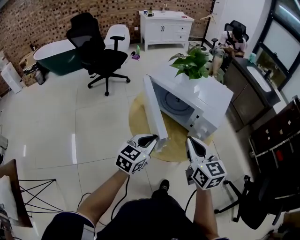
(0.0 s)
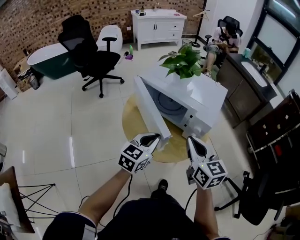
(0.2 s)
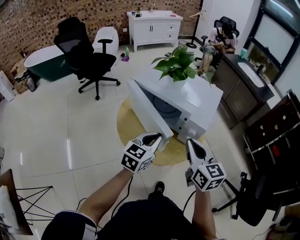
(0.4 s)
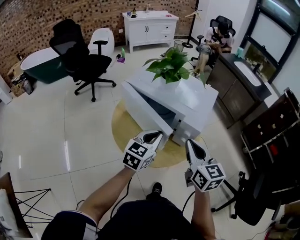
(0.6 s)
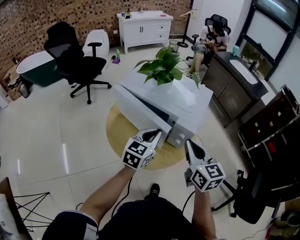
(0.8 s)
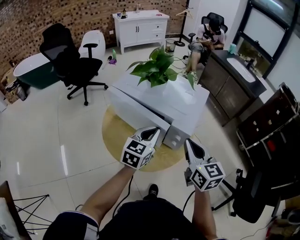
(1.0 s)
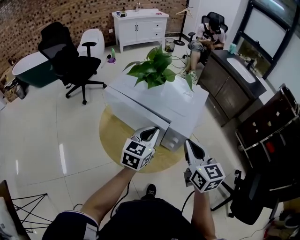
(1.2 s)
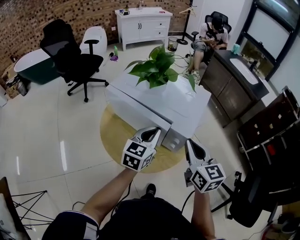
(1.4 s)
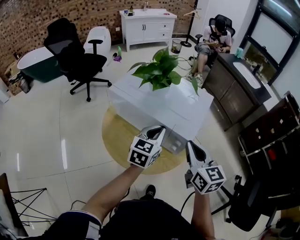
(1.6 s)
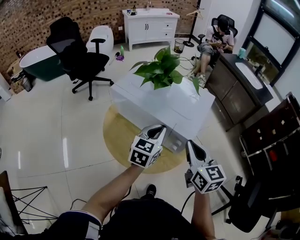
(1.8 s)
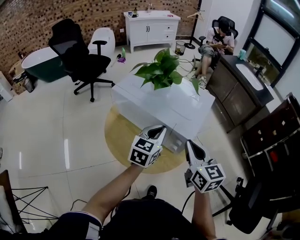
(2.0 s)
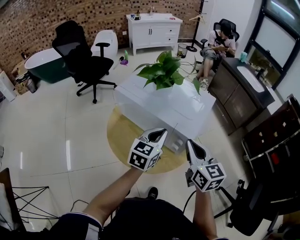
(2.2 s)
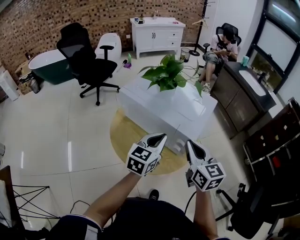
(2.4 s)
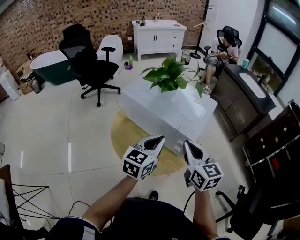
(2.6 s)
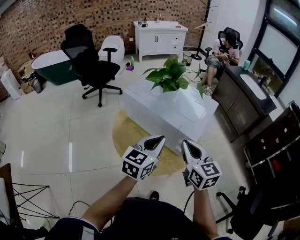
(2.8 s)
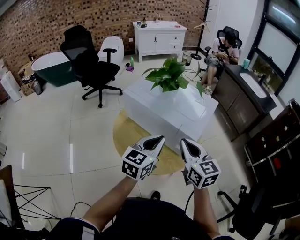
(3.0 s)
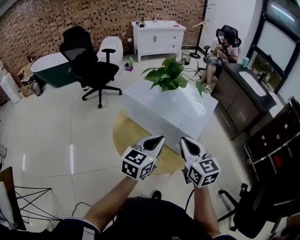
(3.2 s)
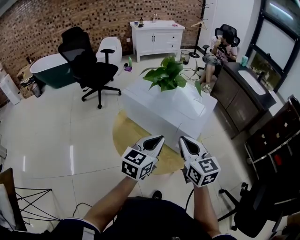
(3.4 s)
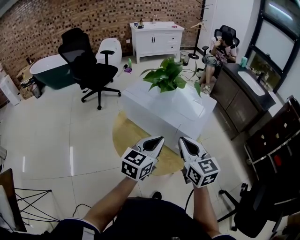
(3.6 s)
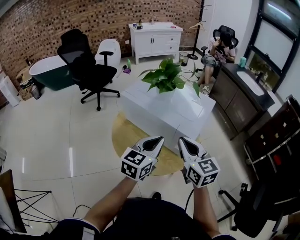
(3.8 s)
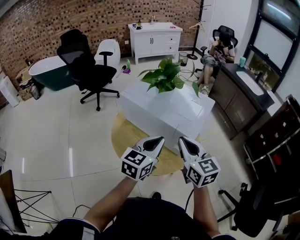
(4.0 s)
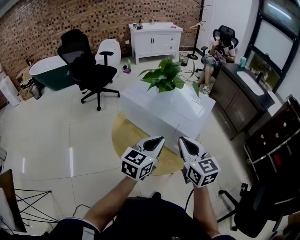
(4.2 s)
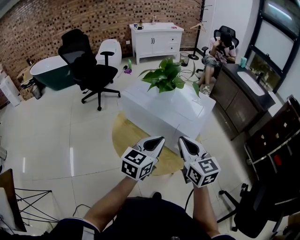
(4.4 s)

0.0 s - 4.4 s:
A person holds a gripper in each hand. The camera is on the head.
0.0 s - 1.4 s: The left gripper goes some 20 cm forward and to the right; the right gripper shifts about 15 cm to the right and forward.
1.4 s - 3.0 s: The right gripper travels to the left by roughly 5 cm; the left gripper shifts about 5 cm backward.
3.0 s - 4.4 s: Neither gripper changes place.

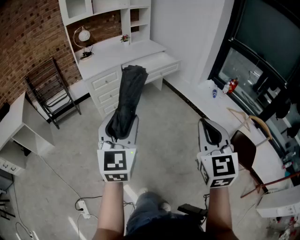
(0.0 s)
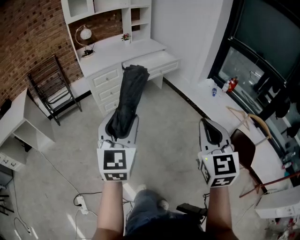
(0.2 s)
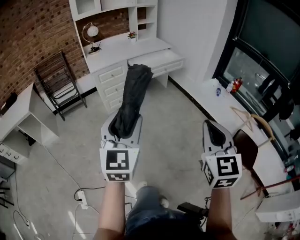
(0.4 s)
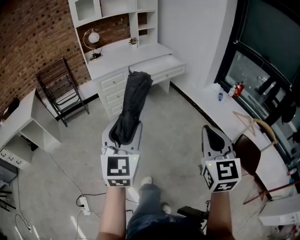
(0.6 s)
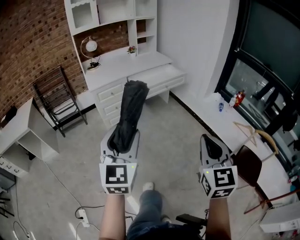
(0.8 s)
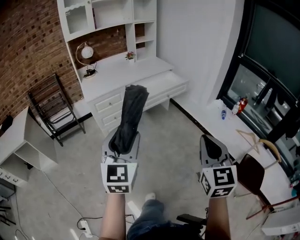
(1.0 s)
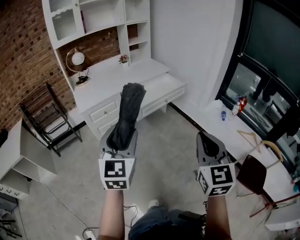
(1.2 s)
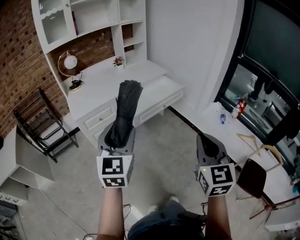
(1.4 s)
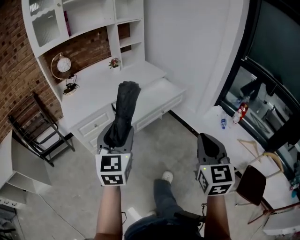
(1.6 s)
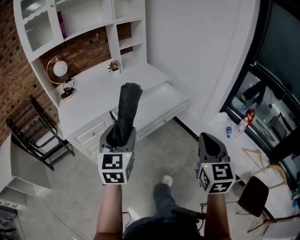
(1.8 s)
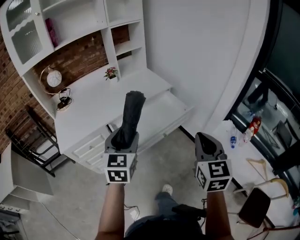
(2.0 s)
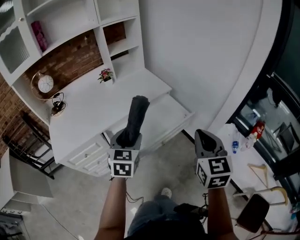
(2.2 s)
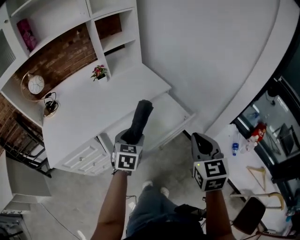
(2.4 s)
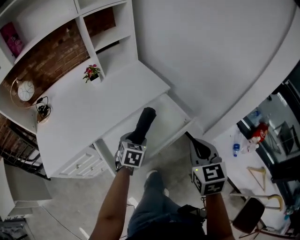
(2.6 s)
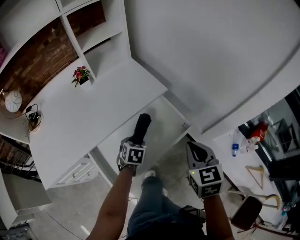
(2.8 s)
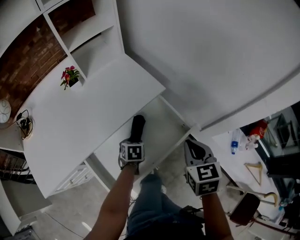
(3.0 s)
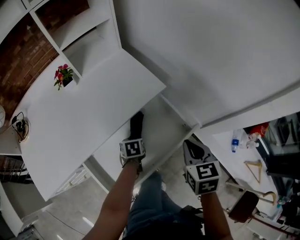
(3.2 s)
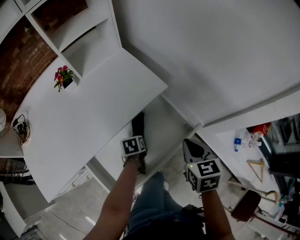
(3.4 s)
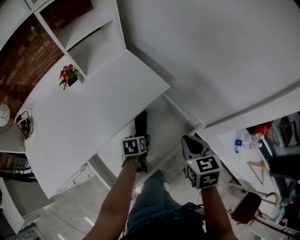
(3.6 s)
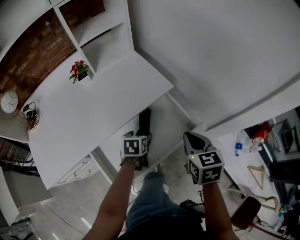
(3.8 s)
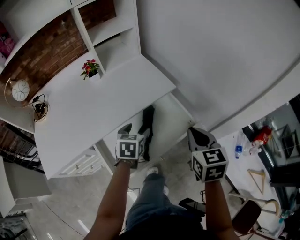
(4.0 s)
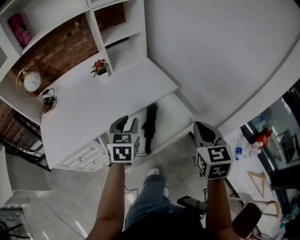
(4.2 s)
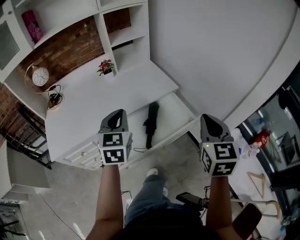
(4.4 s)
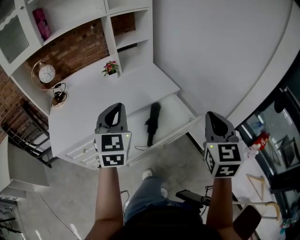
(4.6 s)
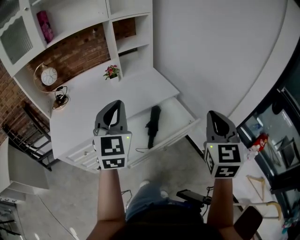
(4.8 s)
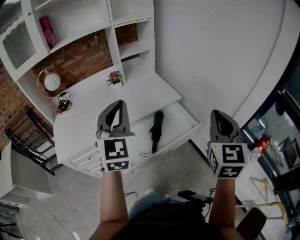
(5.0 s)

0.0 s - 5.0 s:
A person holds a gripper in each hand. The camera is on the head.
0.0 s - 1.6 s: The two grippers travel together, forward, about 40 cm.
1.6 s - 3.4 s: Both grippers are carried forward, roughly 60 cm. The left gripper shifts roughly 40 cm downward, and angles its fingers downward, by about 60 degrees. Meanwhile the right gripper tilts its fingers approximately 30 degrees downward.
3.4 s - 5.0 s: The left gripper shifts approximately 50 cm upward and backward, tilts its fingers some 70 degrees upward, and closes up, while the right gripper heads upward and backward, covering some 35 cm, and tilts its fingers roughly 40 degrees upward.

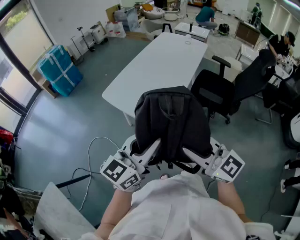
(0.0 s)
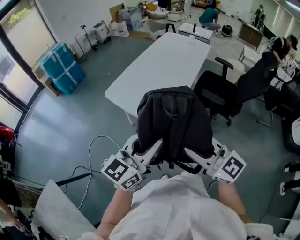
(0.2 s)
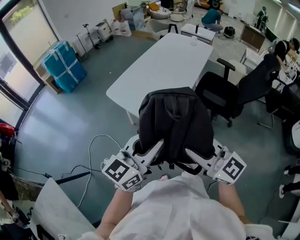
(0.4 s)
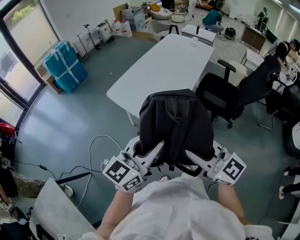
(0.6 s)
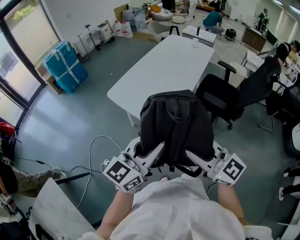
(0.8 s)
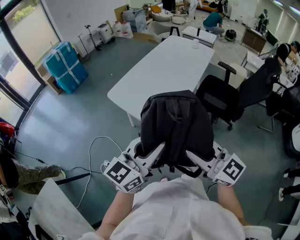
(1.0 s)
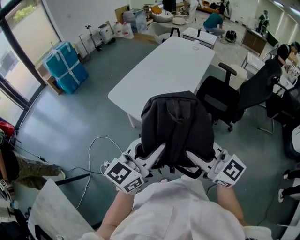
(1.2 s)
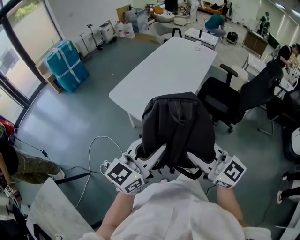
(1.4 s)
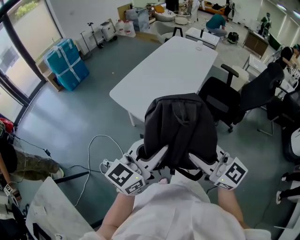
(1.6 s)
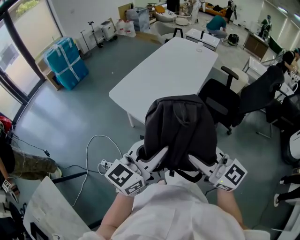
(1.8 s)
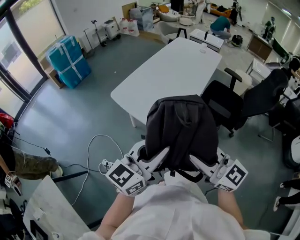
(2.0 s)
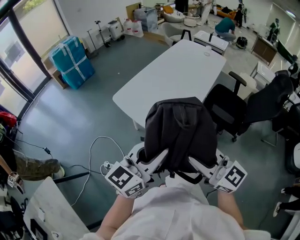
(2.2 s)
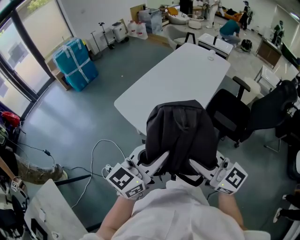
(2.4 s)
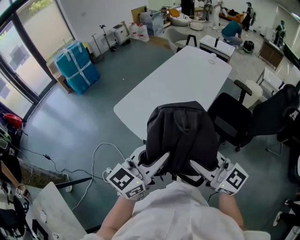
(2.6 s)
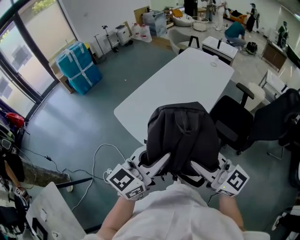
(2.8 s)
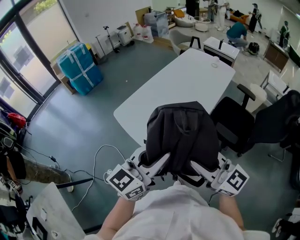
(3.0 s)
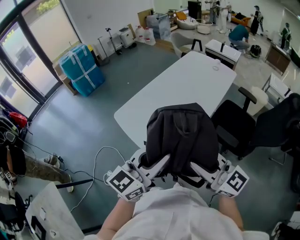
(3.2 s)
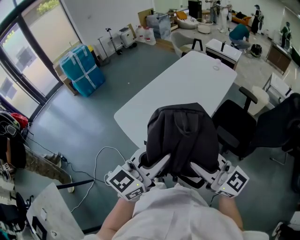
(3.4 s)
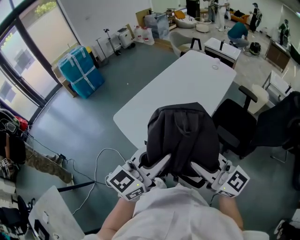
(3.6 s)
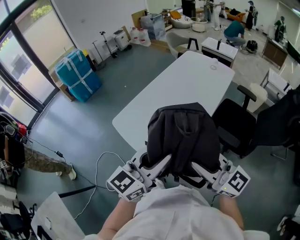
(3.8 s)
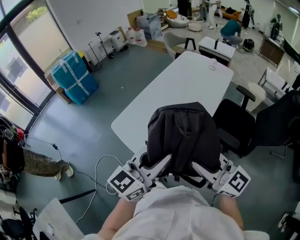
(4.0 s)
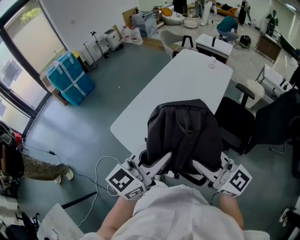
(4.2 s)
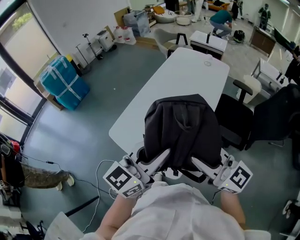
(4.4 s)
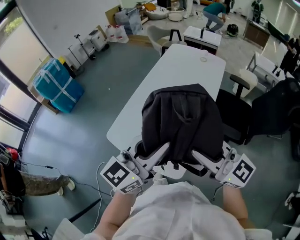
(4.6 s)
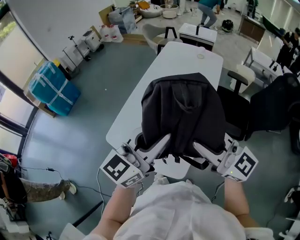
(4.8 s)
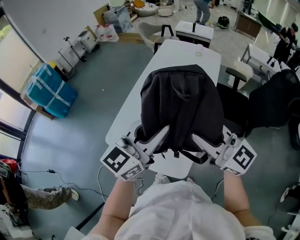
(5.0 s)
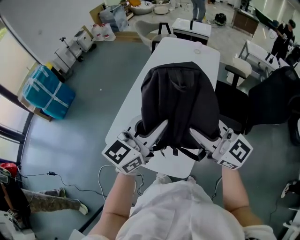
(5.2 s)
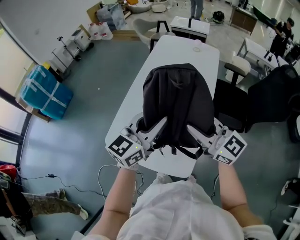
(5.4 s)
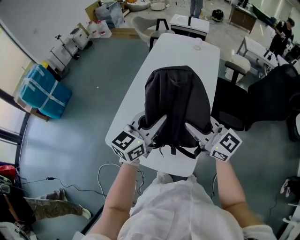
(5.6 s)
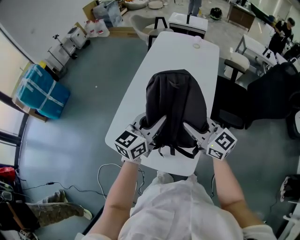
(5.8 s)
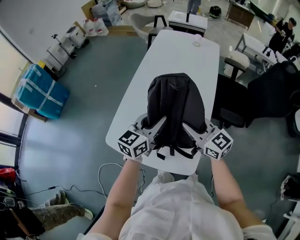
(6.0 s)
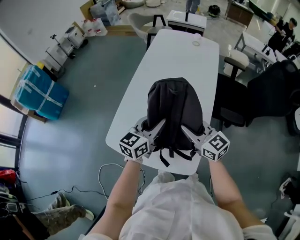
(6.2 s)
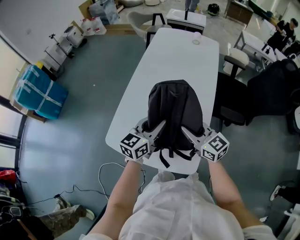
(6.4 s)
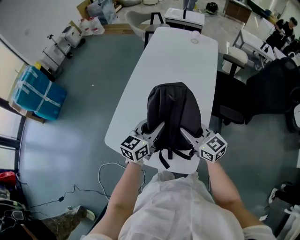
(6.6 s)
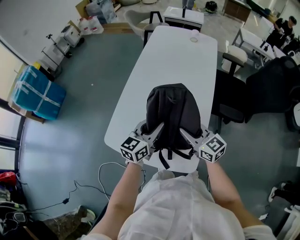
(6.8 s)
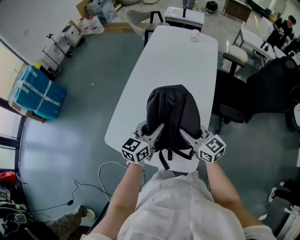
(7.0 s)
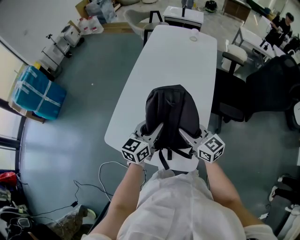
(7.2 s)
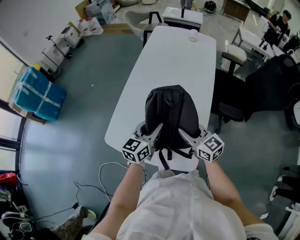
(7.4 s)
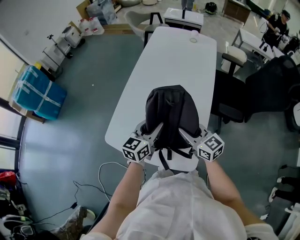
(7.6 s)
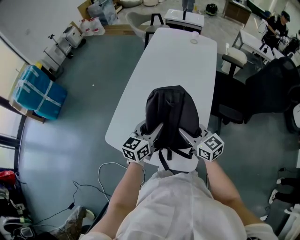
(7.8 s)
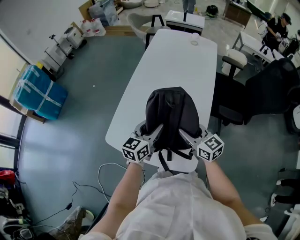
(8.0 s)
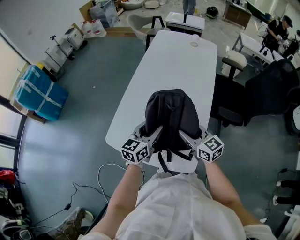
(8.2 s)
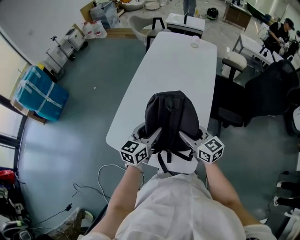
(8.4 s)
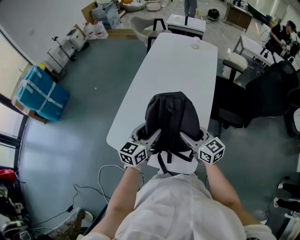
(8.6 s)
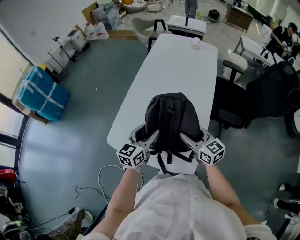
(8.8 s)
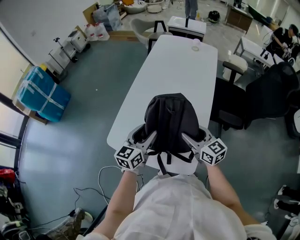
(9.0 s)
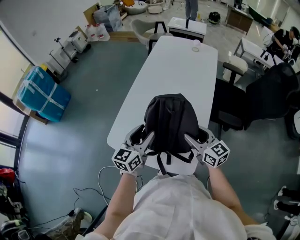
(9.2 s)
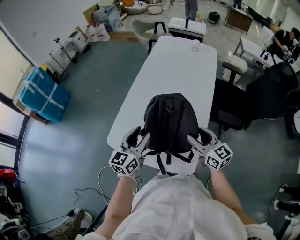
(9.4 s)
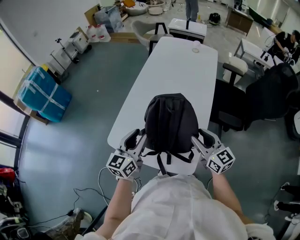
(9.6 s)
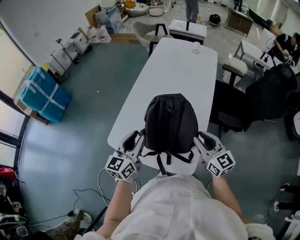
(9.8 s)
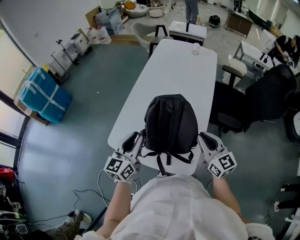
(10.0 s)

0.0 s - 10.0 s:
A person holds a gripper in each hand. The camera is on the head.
0.0 s - 1.4 s: Neither gripper changes place.
1.4 s - 2.8 s: The two grippers go approximately 15 cm forward and to the right.
2.8 s - 4.2 s: The grippers both shift forward by about 10 cm.
4.2 s - 5.8 s: The right gripper shifts about 25 cm forward, downward and to the left, and changes its angle by approximately 20 degrees. Meanwhile the left gripper goes roughly 25 cm forward and downward.
5.8 s - 7.2 s: Both grippers move downward, some 10 cm.
7.2 s - 8.6 s: The right gripper opens its fingers. Meanwhile the left gripper opens up.
8.6 s - 10.0 s: The right gripper goes some 10 cm upward and to the right, and closes its fingers. Meanwhile the left gripper is displaced to the left and upward by about 10 cm, and closes.

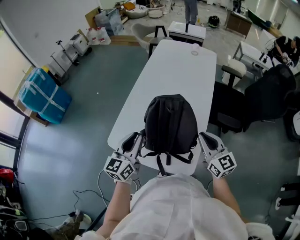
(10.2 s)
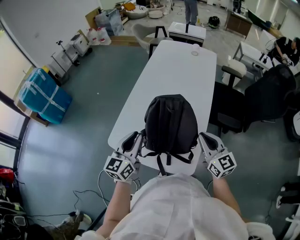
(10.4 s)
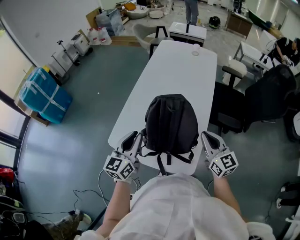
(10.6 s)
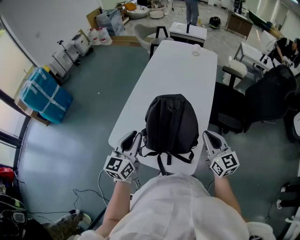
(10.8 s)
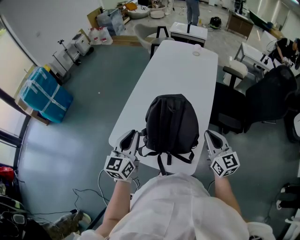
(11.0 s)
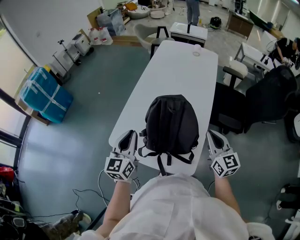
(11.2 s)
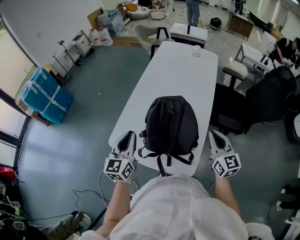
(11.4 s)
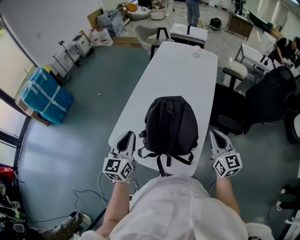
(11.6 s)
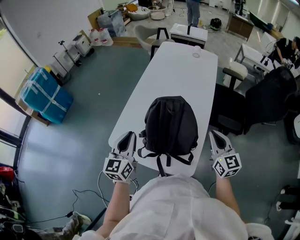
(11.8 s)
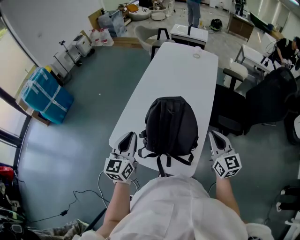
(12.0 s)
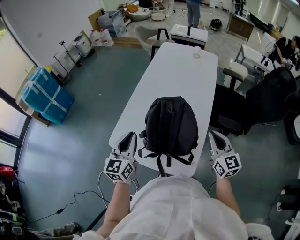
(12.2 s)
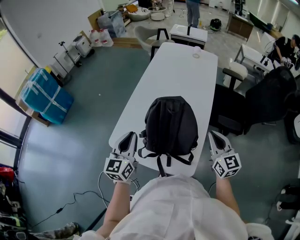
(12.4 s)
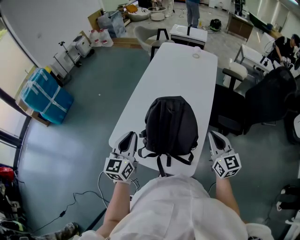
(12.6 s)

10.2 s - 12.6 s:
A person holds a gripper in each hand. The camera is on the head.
10.2 s - 11.4 s: The grippers move only a little.
11.4 s - 12.6 s: Both grippers stay about where they are.

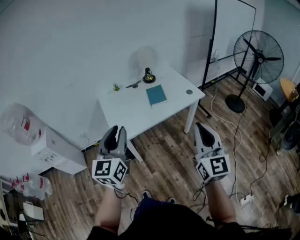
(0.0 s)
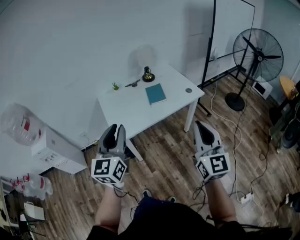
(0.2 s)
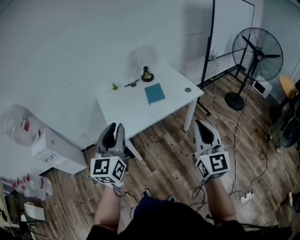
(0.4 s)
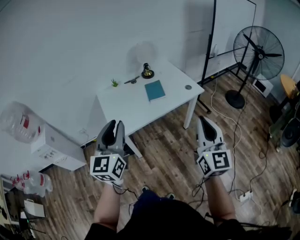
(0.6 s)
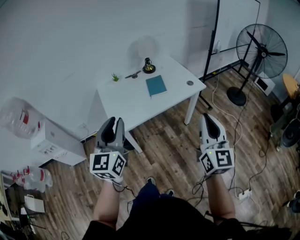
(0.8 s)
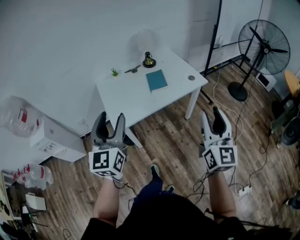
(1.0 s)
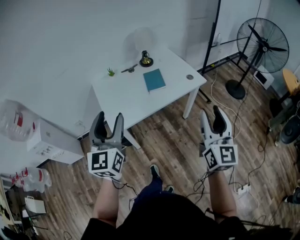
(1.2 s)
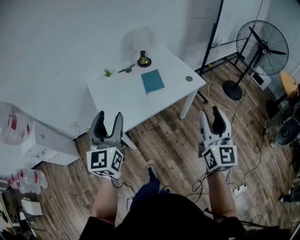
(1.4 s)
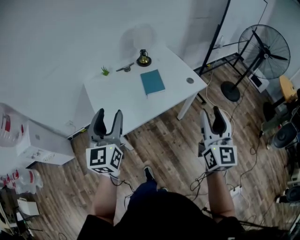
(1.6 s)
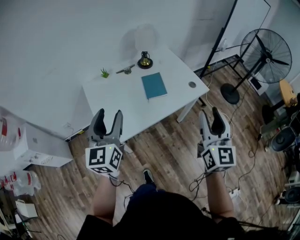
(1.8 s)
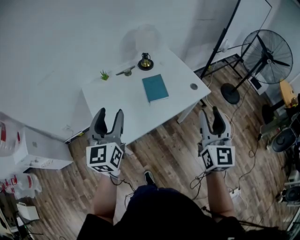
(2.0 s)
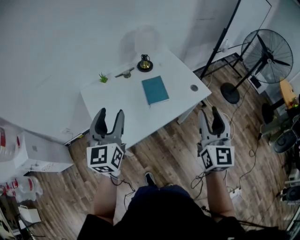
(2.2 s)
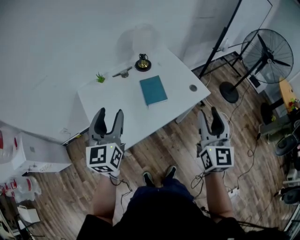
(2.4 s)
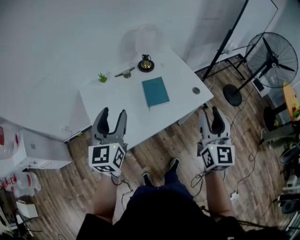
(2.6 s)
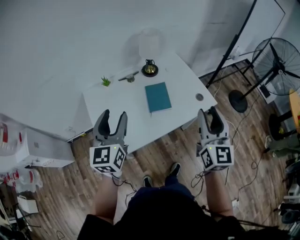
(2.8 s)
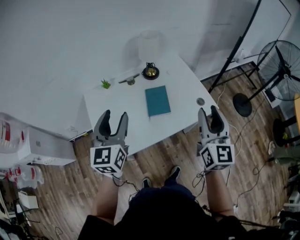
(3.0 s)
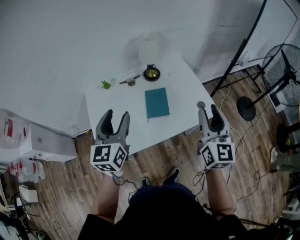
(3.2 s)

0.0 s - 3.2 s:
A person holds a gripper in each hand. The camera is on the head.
0.0 s - 1.6 s: Both grippers travel together forward, some 20 cm. The left gripper opens its fingers. The right gripper opens.
1.6 s - 3.2 s: The grippers both shift forward by some 25 cm.
